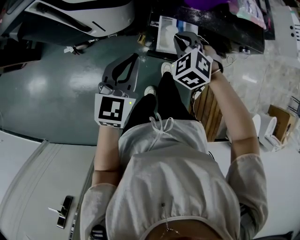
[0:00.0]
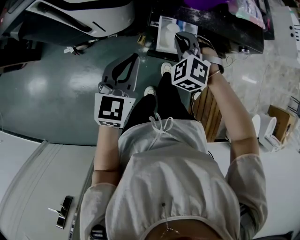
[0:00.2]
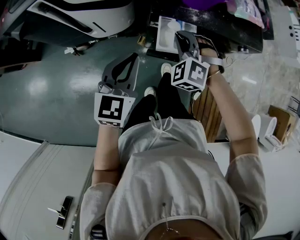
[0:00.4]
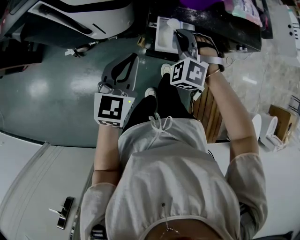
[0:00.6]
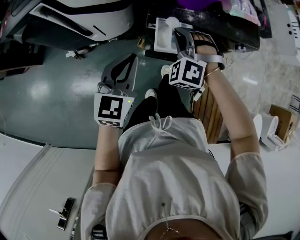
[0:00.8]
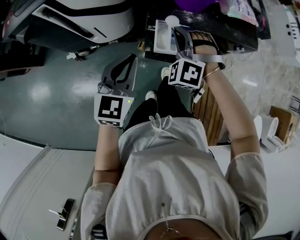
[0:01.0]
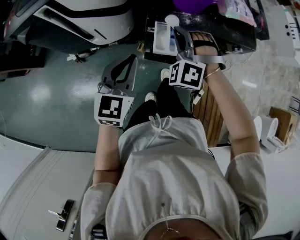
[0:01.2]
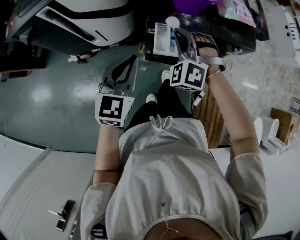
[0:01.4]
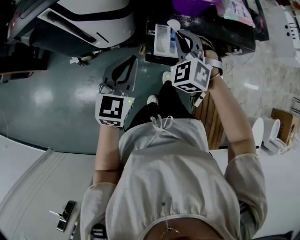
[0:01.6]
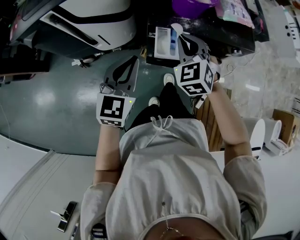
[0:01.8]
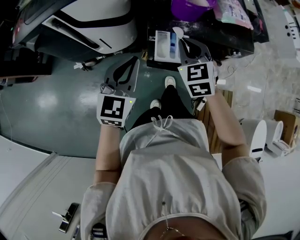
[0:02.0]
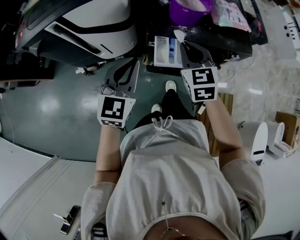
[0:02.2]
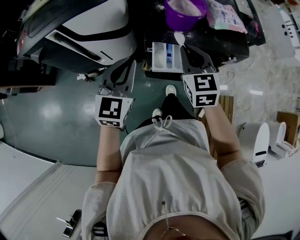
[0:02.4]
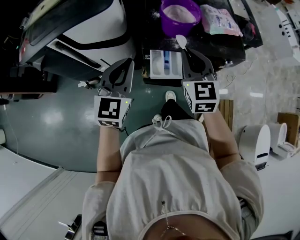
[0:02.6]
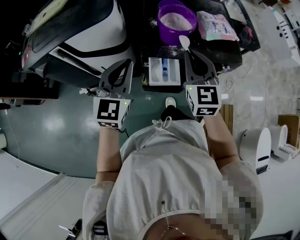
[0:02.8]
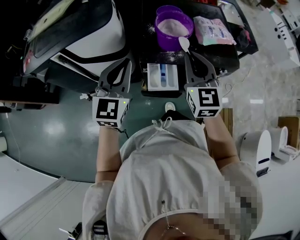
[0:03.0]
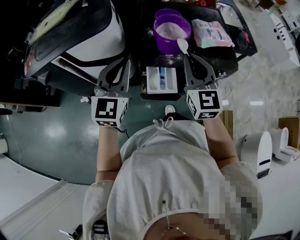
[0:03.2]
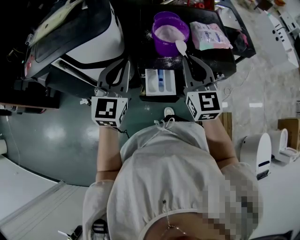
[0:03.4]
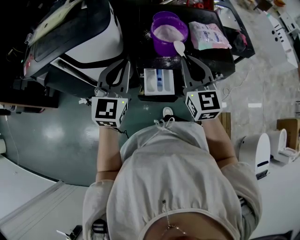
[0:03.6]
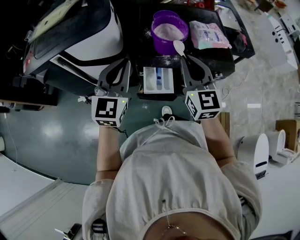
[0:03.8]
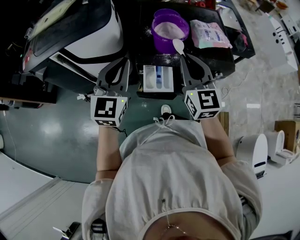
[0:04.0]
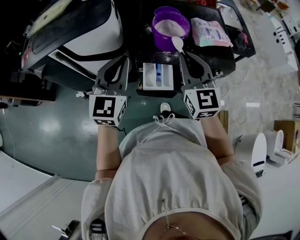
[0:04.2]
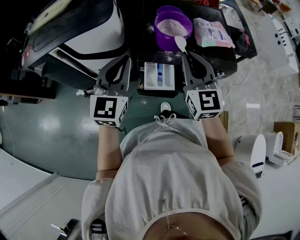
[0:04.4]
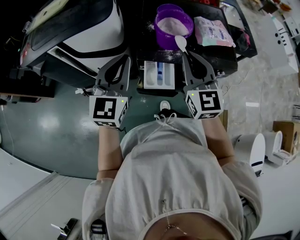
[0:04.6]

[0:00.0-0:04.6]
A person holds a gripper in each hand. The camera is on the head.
0:00.0 to 0:01.6: The right gripper moves upward, about 10 cm, and rotates some 20 degrees.
0:01.6 to 0:03.0: The left gripper heads upward and forward, covering approximately 15 cm; the right gripper goes roughly 15 cm upward and to the right, and twists some 40 degrees clockwise, seen from behind.
0:03.0 to 0:04.6: The grippers make only small movements.

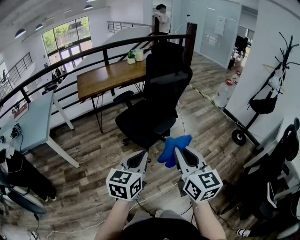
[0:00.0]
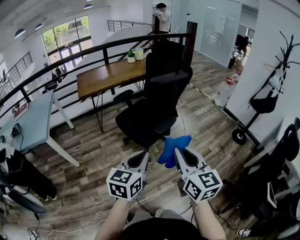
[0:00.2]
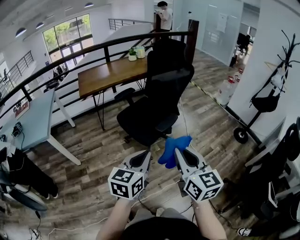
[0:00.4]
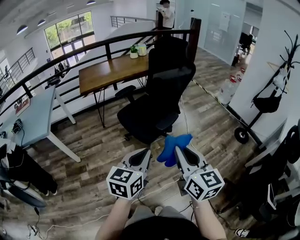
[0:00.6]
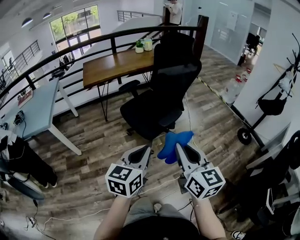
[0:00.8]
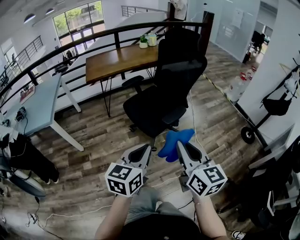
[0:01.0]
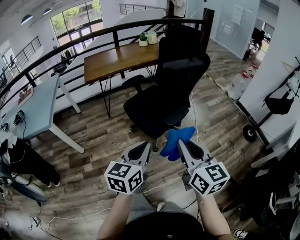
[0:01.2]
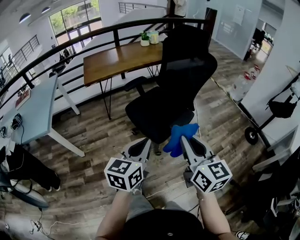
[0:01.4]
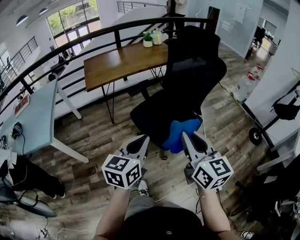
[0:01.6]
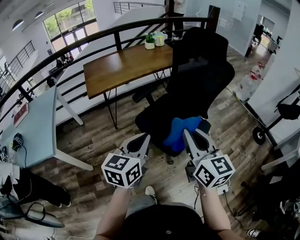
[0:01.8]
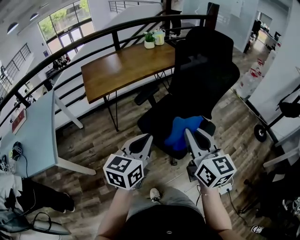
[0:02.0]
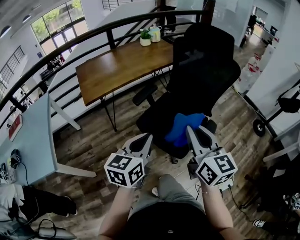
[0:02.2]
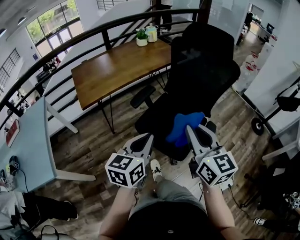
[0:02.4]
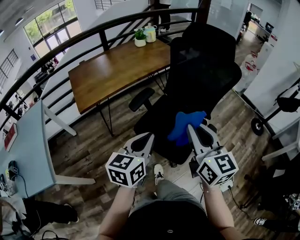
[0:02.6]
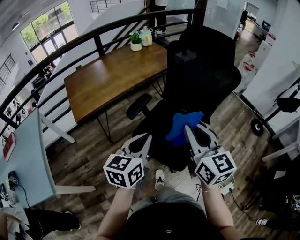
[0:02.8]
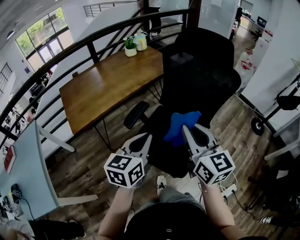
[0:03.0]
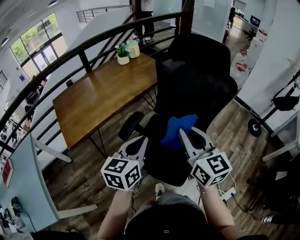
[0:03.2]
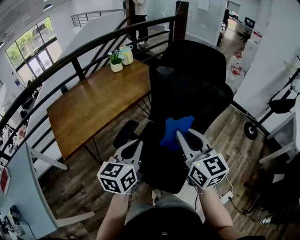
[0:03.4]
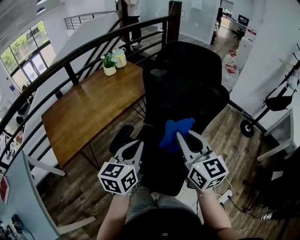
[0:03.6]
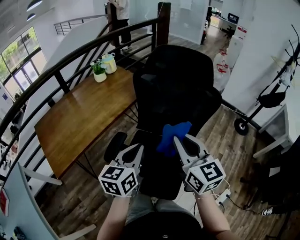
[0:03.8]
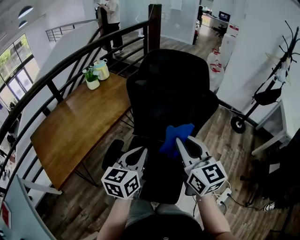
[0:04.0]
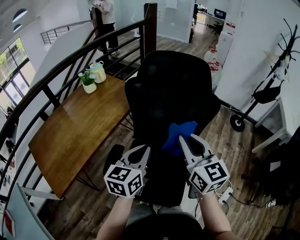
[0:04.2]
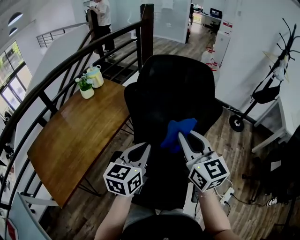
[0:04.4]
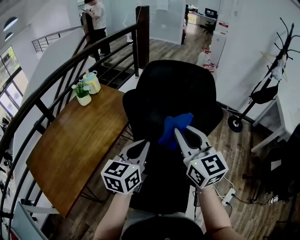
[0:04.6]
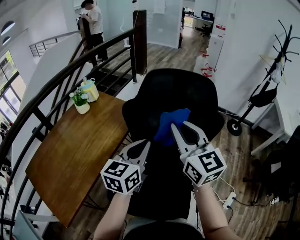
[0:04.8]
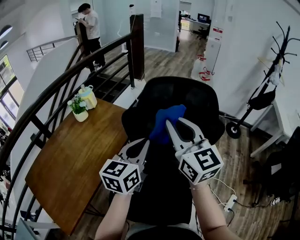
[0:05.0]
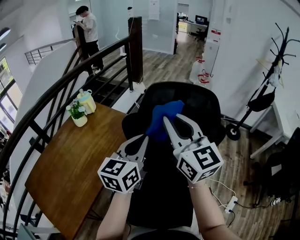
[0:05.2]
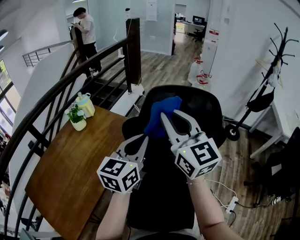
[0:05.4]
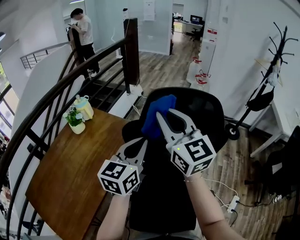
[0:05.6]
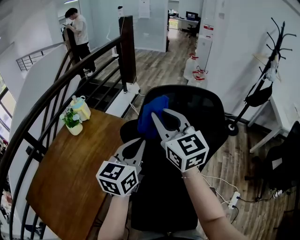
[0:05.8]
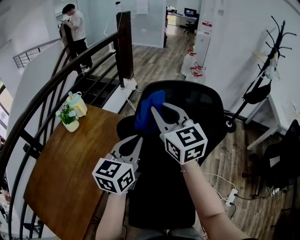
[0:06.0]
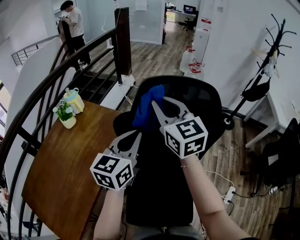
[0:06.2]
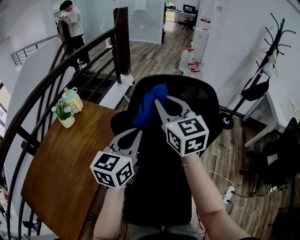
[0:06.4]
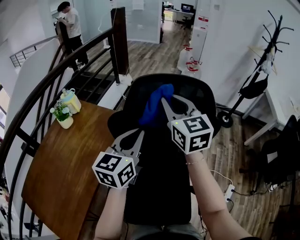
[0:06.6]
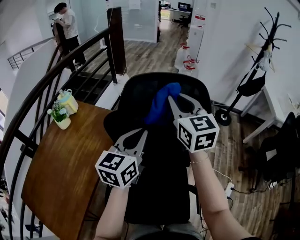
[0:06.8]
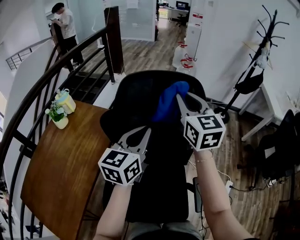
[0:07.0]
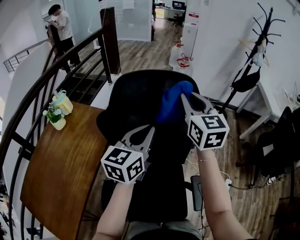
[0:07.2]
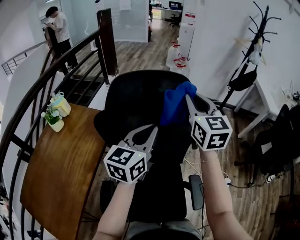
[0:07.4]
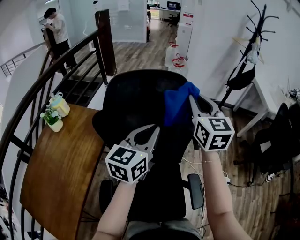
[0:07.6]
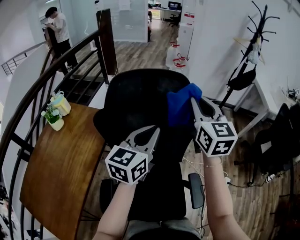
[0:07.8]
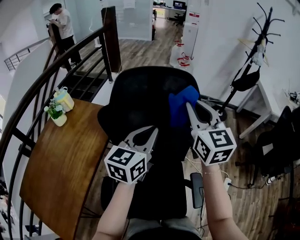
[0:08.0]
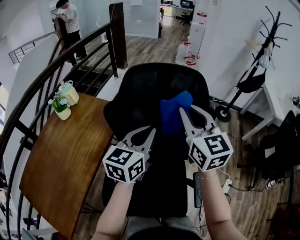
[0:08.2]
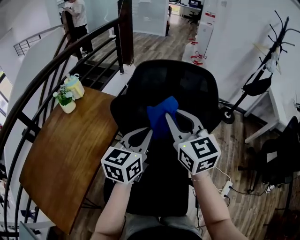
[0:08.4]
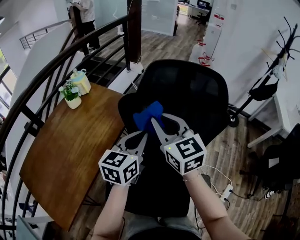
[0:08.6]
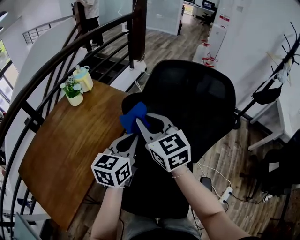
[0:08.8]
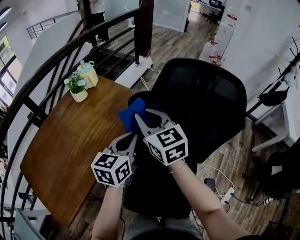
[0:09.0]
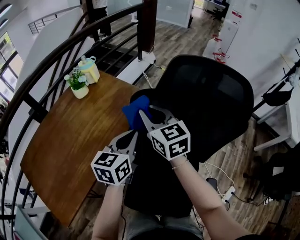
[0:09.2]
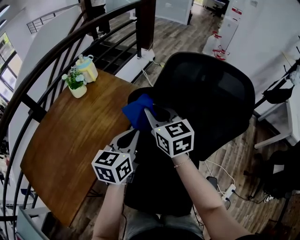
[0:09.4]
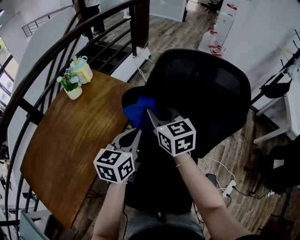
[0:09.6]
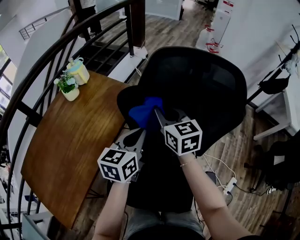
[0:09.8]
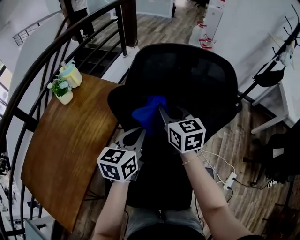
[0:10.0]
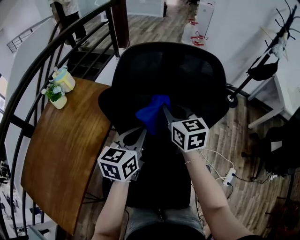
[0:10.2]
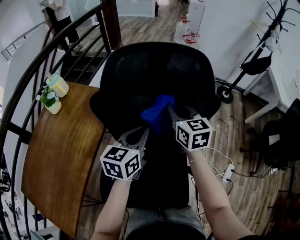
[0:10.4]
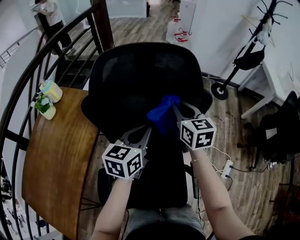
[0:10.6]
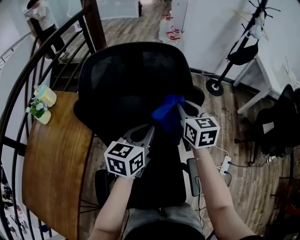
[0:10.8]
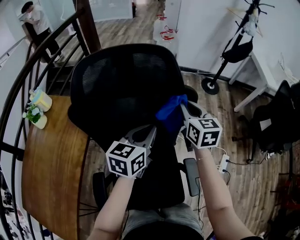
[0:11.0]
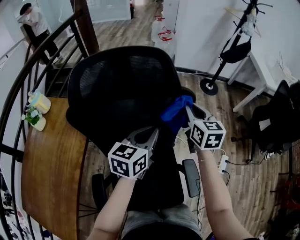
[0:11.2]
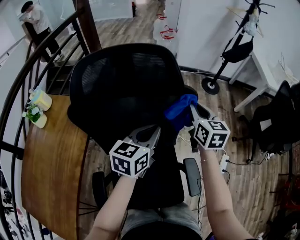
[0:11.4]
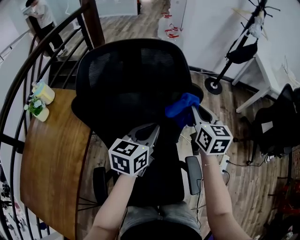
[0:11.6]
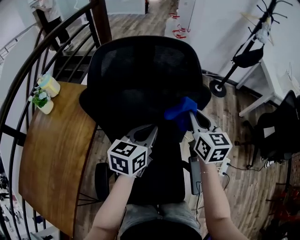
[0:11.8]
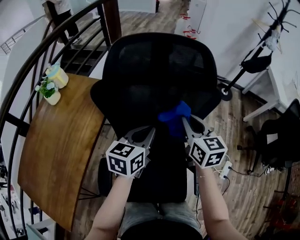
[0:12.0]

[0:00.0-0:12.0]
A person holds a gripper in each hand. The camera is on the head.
0:00.0 to 0:01.6: The grippers both shift forward and to the left by some 25 cm.
0:01.6 to 0:03.0: The grippers both shift forward by some 25 cm.
0:03.0 to 0:04.4: Both grippers travel together forward, some 25 cm. The left gripper turns by approximately 20 degrees. Meanwhile the right gripper changes its angle by about 20 degrees.
0:04.4 to 0:06.0: The left gripper goes approximately 20 cm forward; the right gripper heads forward and to the left, covering roughly 25 cm.
0:06.0 to 0:07.6: The left gripper travels to the right by approximately 15 cm. Meanwhile the right gripper travels to the right by about 25 cm, and rotates about 30 degrees.
0:07.6 to 0:09.0: The right gripper moves some 35 cm, and rotates approximately 40 degrees; the left gripper changes place by roughly 25 cm, and changes its angle by approximately 30 degrees.
0:09.0 to 0:10.4: The left gripper heads to the right, covering approximately 15 cm, while the right gripper goes some 25 cm to the right, and swivels about 30 degrees.
0:10.4 to 0:12.0: The left gripper travels to the right and back again, roughly 15 cm each way. Meanwhile the right gripper is displaced to the right and backward by roughly 10 cm.

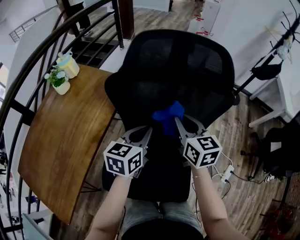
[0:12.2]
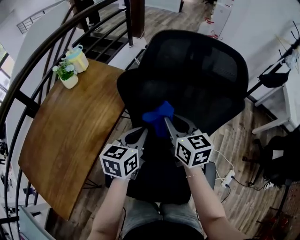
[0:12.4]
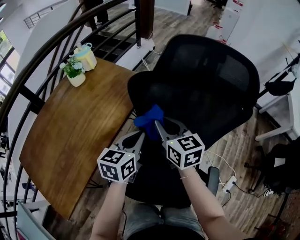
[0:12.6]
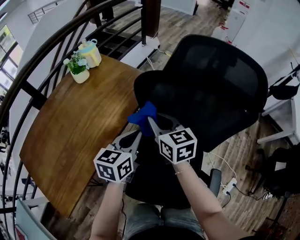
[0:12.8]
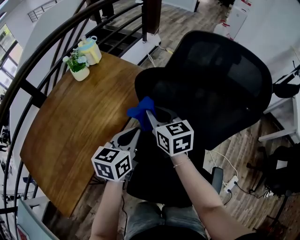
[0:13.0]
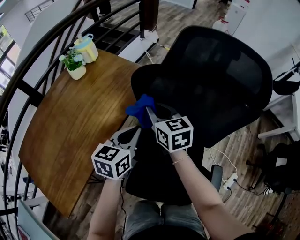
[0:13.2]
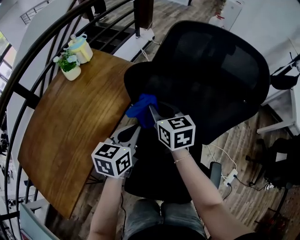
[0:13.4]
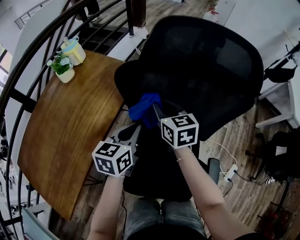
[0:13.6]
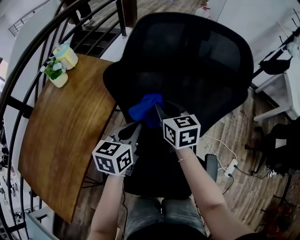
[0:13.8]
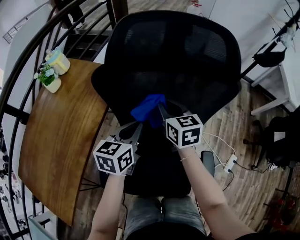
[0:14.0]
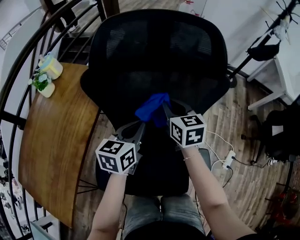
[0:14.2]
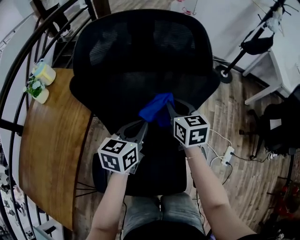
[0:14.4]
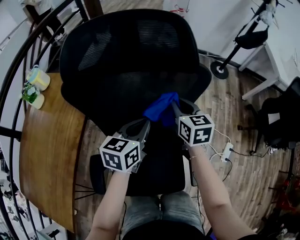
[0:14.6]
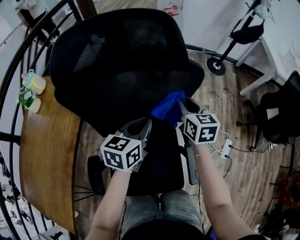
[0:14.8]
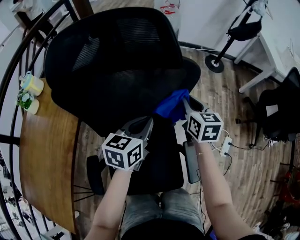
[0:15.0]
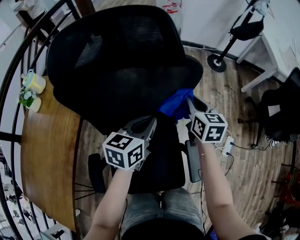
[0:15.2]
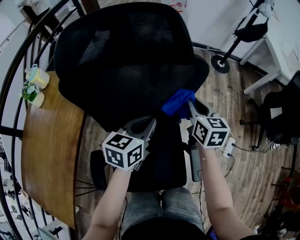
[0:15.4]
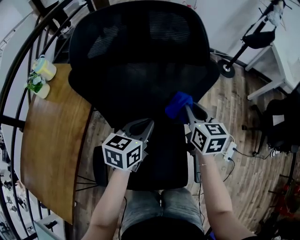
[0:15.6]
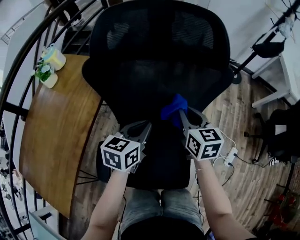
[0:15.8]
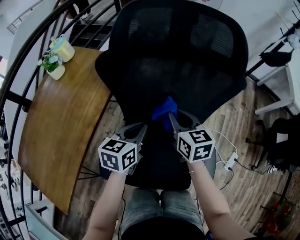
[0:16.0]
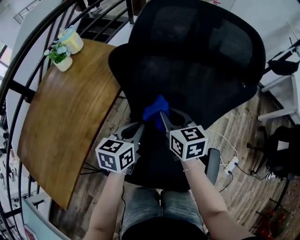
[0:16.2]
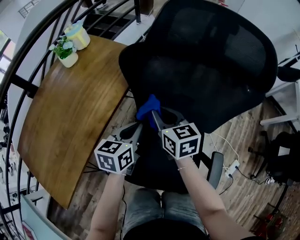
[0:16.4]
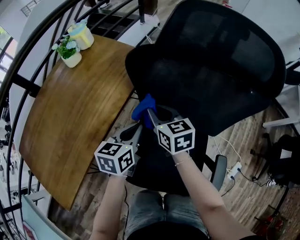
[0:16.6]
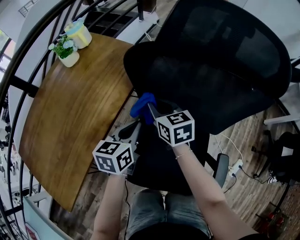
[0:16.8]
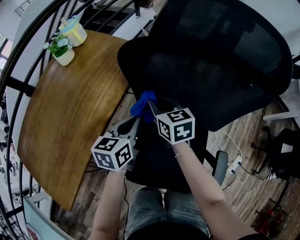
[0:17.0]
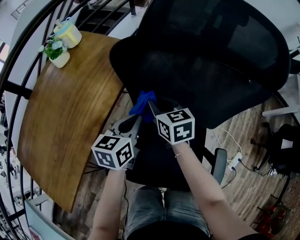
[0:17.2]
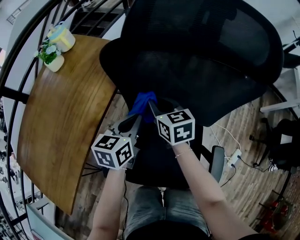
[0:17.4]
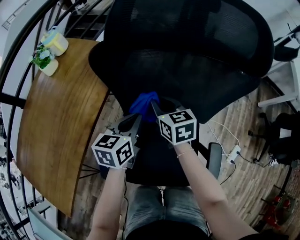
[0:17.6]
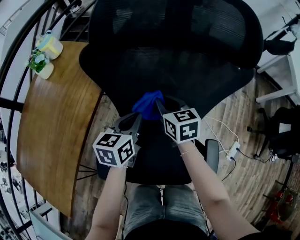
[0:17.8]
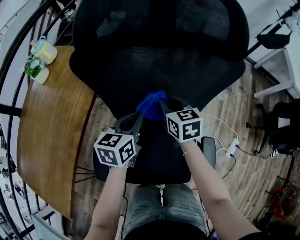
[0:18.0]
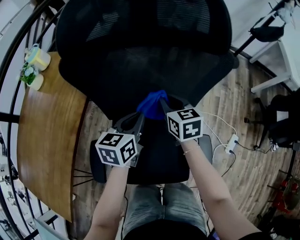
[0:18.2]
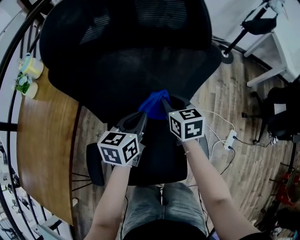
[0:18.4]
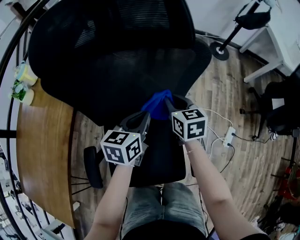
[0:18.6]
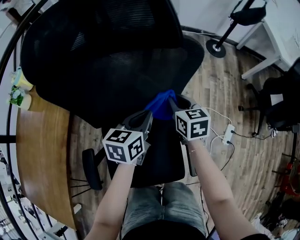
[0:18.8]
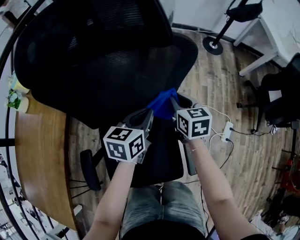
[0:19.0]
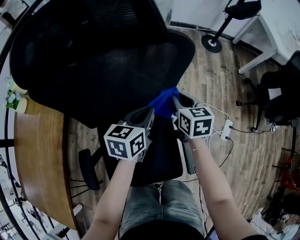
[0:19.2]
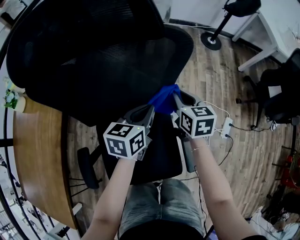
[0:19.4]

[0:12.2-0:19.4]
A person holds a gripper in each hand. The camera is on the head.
0:12.2 to 0:13.6: The left gripper is displaced to the left by about 10 cm, while the right gripper shifts approximately 15 cm to the left, forward and downward.
0:13.6 to 0:15.0: The left gripper ends up roughly 25 cm from where it was, and changes its angle by roughly 20 degrees. The right gripper ends up approximately 35 cm from where it was, and swivels some 30 degrees.
0:15.0 to 0:16.6: The right gripper ends up roughly 40 cm from where it was, and swivels approximately 40 degrees; the left gripper moves approximately 25 cm, and changes its angle by approximately 30 degrees.
0:16.6 to 0:18.0: The grippers both shift to the right by some 15 cm.
0:18.0 to 0:19.4: Both grippers travel together to the right, some 20 cm.
